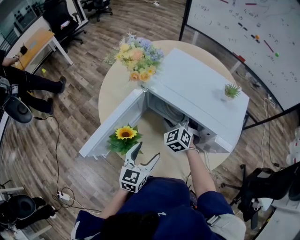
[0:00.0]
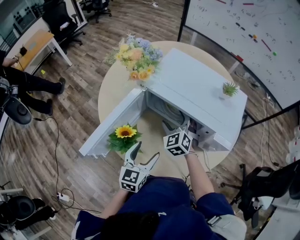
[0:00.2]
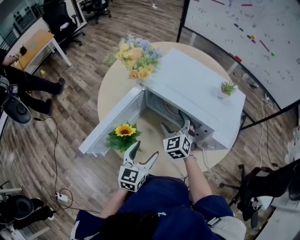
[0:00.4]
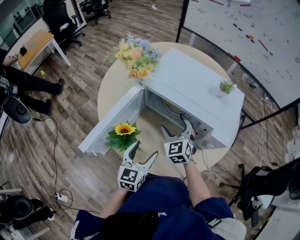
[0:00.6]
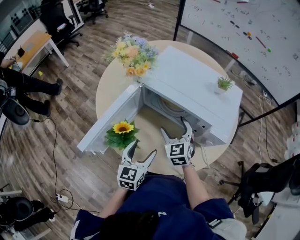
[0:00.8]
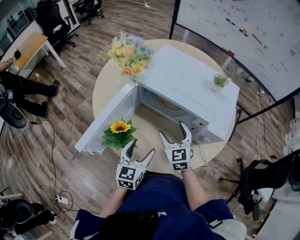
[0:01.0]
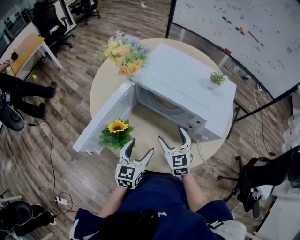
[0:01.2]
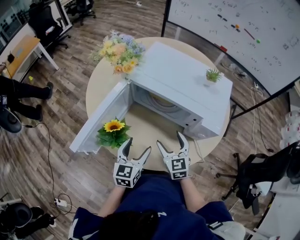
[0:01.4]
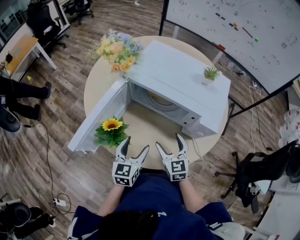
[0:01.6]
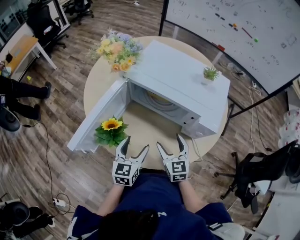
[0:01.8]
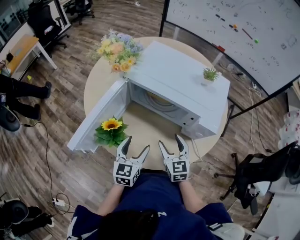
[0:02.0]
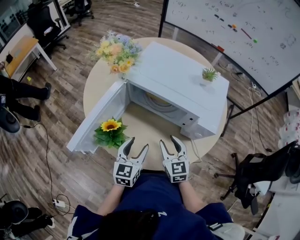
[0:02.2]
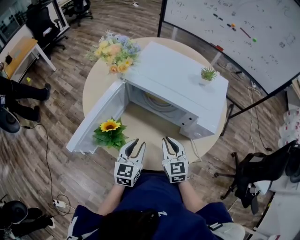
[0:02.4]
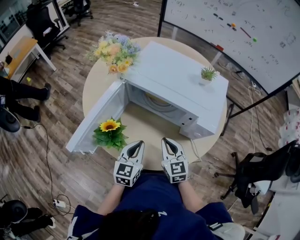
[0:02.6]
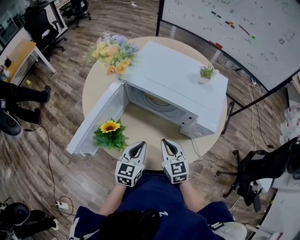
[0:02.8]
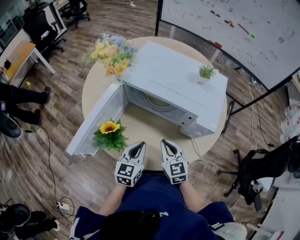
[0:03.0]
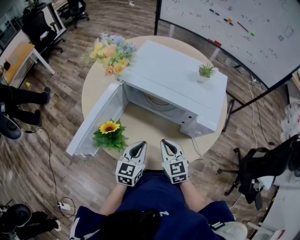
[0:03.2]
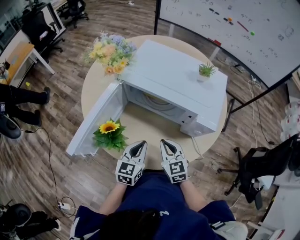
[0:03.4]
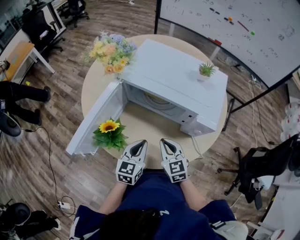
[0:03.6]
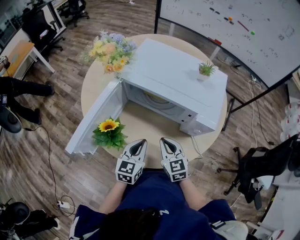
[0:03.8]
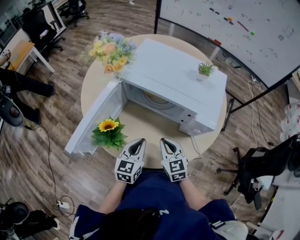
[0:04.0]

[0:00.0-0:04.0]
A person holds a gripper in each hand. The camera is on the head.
0:00.0 to 0:01.4: The right gripper shifts approximately 15 cm backward, and turns by about 30 degrees.
0:01.4 to 0:02.6: The left gripper closes its fingers, while the right gripper closes.
0:02.6 to 0:04.0: The grippers stay close to where they were, moving slightly.

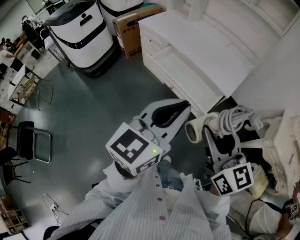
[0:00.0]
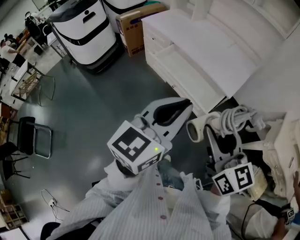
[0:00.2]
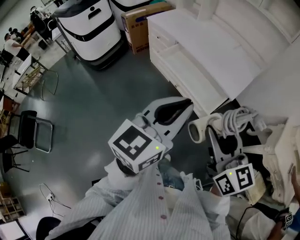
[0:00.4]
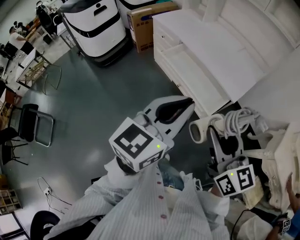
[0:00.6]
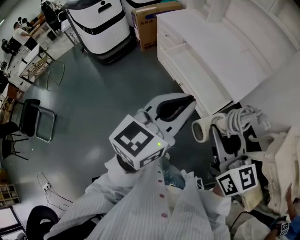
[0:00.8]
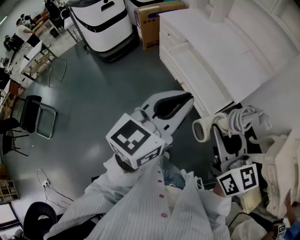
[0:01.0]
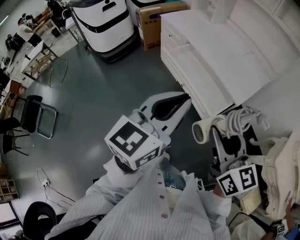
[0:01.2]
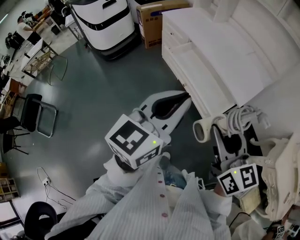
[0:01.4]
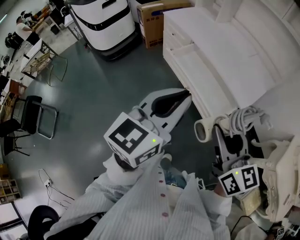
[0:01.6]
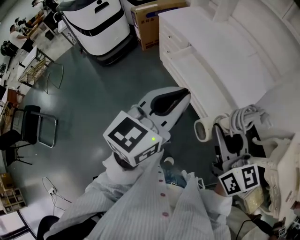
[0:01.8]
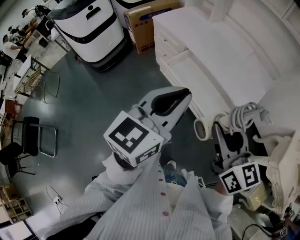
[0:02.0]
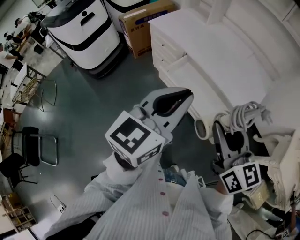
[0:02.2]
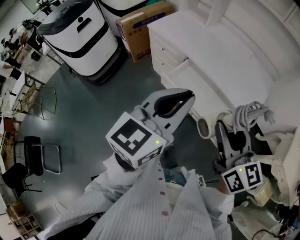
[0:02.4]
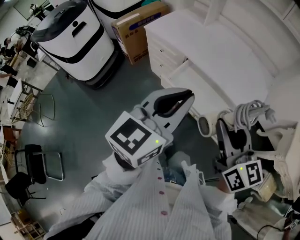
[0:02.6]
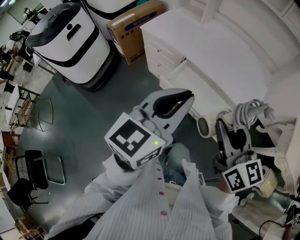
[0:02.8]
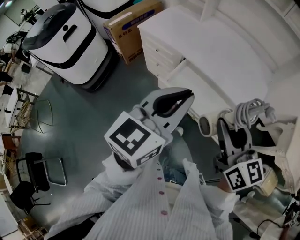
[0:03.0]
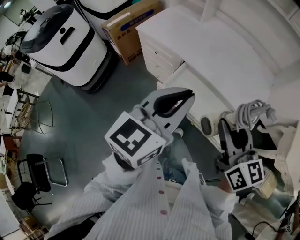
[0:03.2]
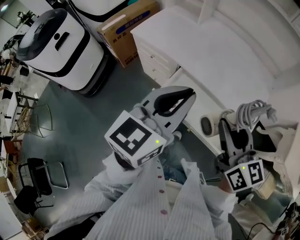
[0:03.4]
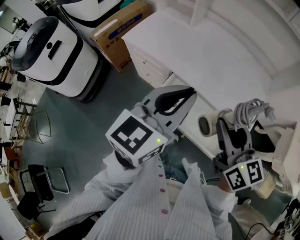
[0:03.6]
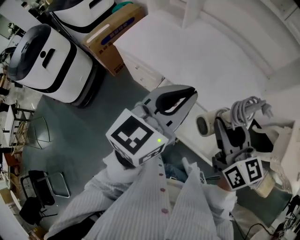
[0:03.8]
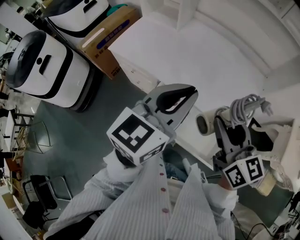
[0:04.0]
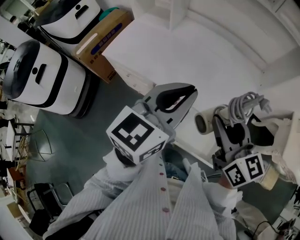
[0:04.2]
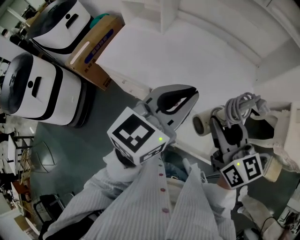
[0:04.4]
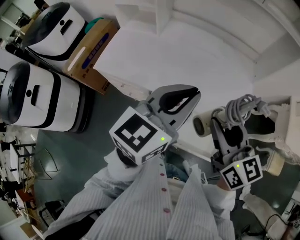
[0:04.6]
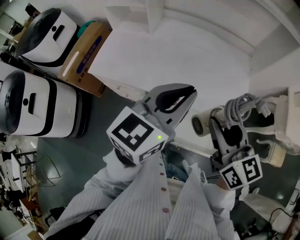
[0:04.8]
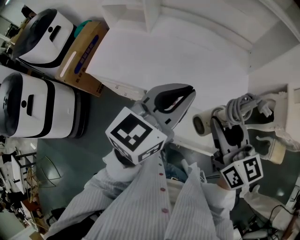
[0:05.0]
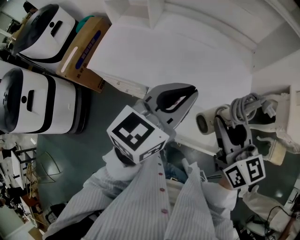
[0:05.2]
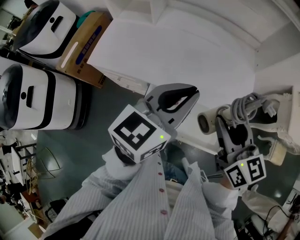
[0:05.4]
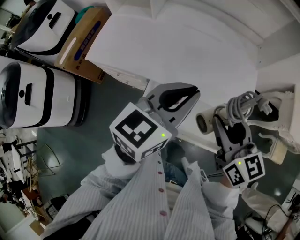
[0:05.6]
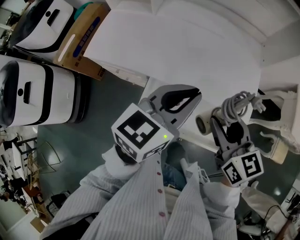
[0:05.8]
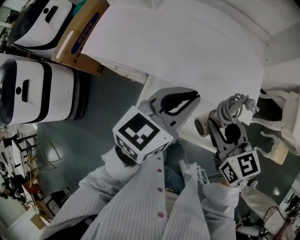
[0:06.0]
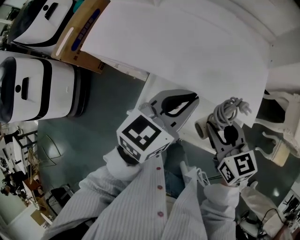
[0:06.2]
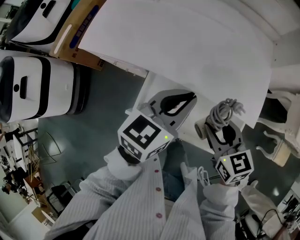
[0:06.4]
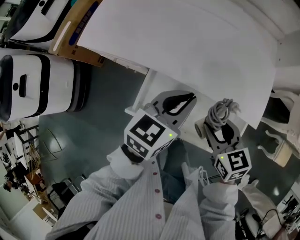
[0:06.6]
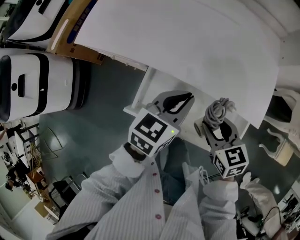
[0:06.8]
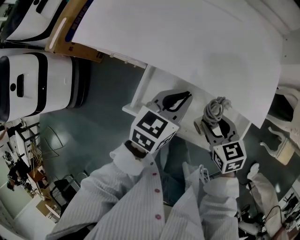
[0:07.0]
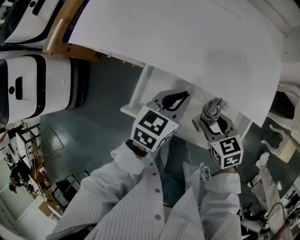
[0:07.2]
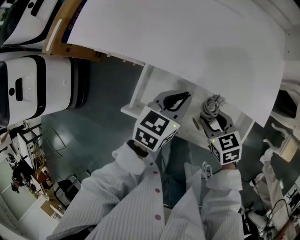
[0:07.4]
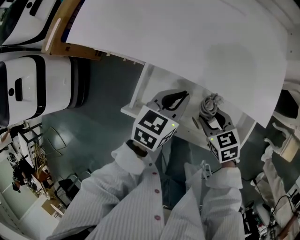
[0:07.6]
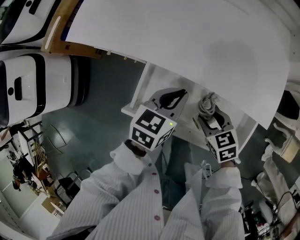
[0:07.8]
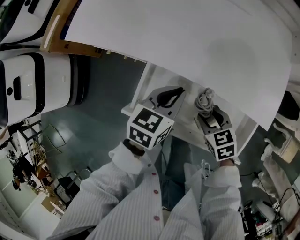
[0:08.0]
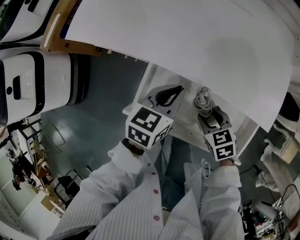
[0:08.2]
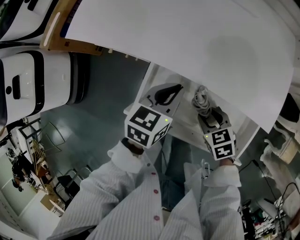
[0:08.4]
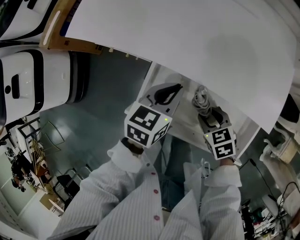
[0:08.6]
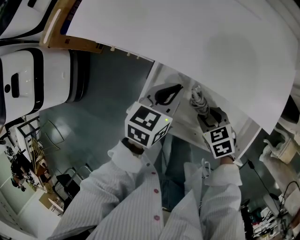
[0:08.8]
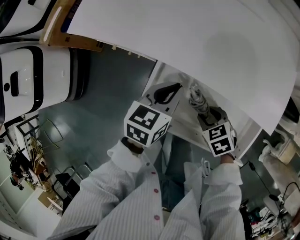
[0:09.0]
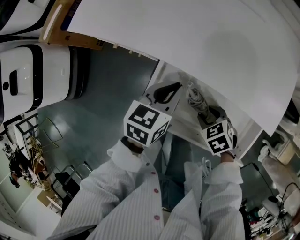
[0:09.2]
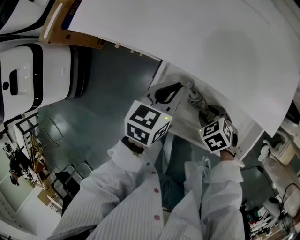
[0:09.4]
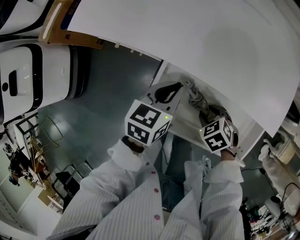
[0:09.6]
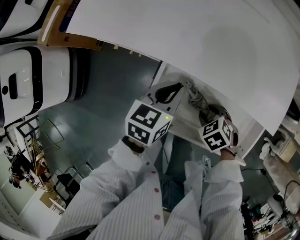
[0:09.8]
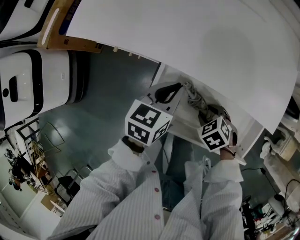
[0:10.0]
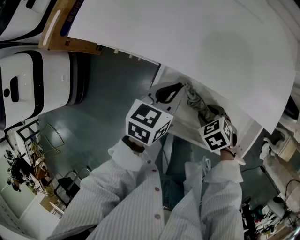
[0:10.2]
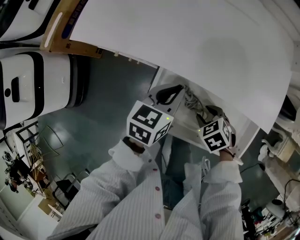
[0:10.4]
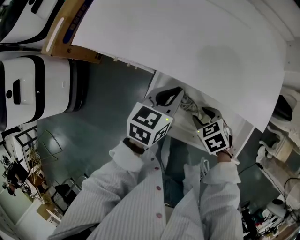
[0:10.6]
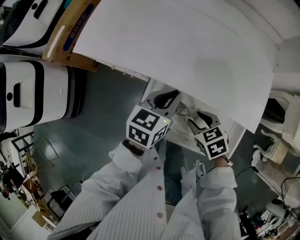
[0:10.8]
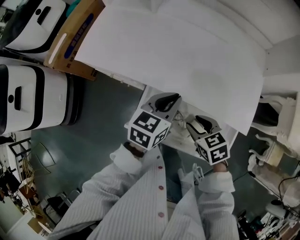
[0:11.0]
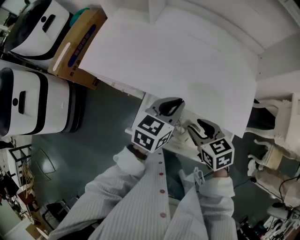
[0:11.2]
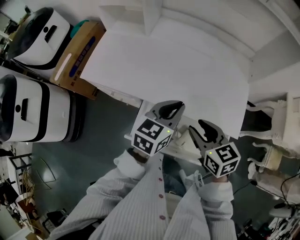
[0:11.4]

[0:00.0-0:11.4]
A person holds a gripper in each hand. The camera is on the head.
0:00.0 to 0:01.4: The right gripper ends up some 5 cm from where it was.
0:01.4 to 0:02.8: The two grippers go approximately 25 cm forward and to the left.
0:02.8 to 0:04.2: The grippers both shift forward by approximately 25 cm.
0:04.2 to 0:05.6: The left gripper heads downward, covering some 5 cm.
0:05.6 to 0:07.2: Both grippers move downward, roughly 25 cm. The left gripper rotates roughly 20 degrees. Meanwhile the right gripper tilts its fingers about 30 degrees downward.
0:07.2 to 0:08.6: The left gripper shifts approximately 5 cm to the left, while the right gripper moves downward, roughly 10 cm.
0:08.6 to 0:10.0: The right gripper changes its angle by about 20 degrees.
0:10.0 to 0:11.4: Both grippers travel together upward, roughly 25 cm. The right gripper tilts its fingers roughly 40 degrees upward.

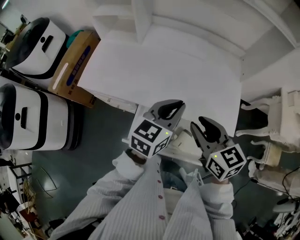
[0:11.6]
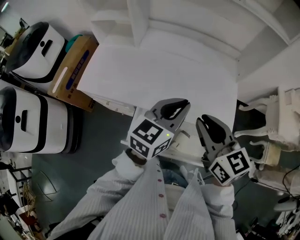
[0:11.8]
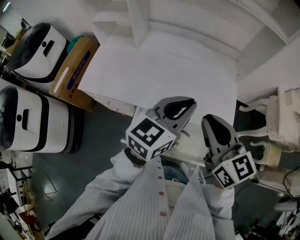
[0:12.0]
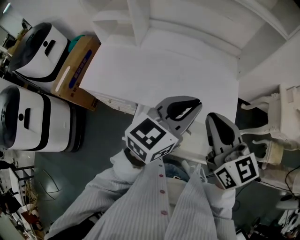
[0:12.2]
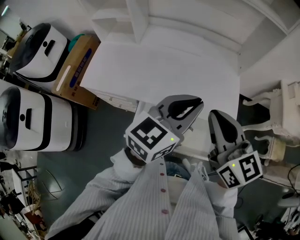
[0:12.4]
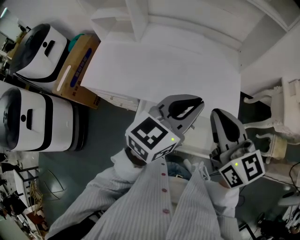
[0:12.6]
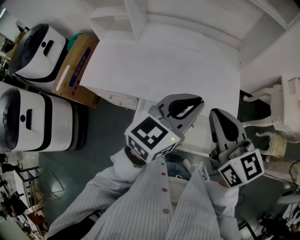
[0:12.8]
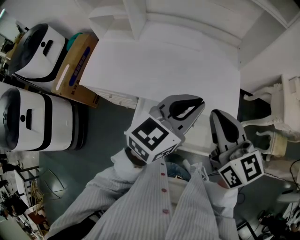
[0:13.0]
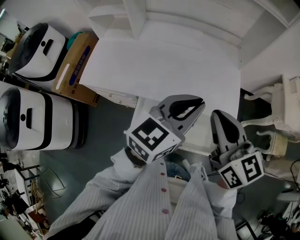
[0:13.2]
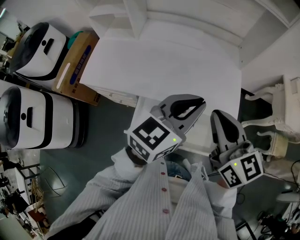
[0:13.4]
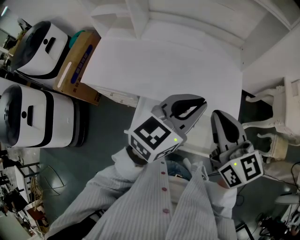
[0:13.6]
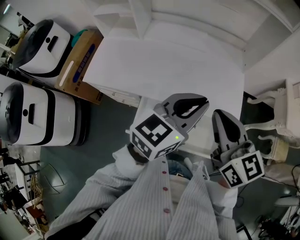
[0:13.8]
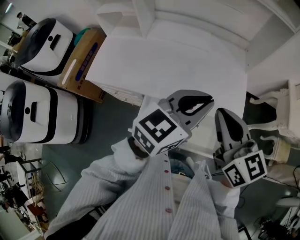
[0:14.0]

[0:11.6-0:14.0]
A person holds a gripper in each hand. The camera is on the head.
0:11.6 to 0:12.8: The left gripper is displaced upward and to the right by approximately 10 cm. The right gripper goes approximately 10 cm upward, and closes its fingers.
0:12.8 to 0:14.0: The grippers make only small movements.

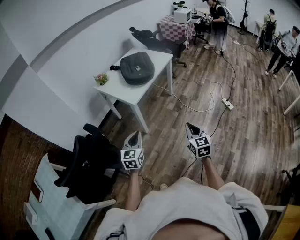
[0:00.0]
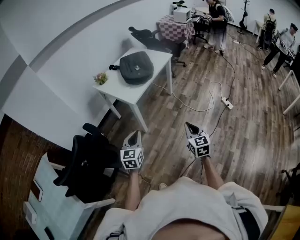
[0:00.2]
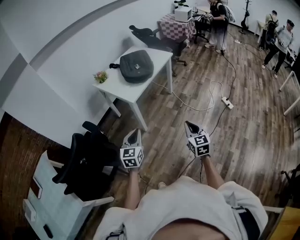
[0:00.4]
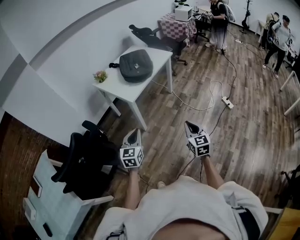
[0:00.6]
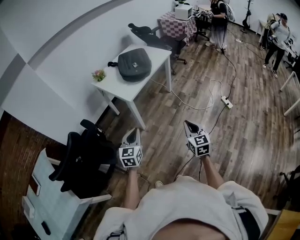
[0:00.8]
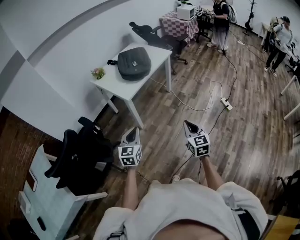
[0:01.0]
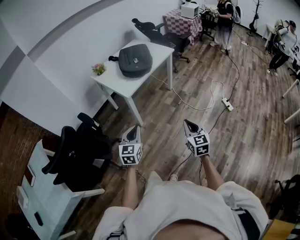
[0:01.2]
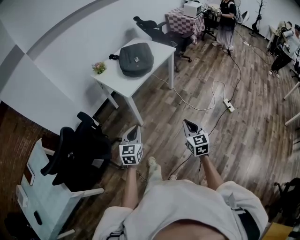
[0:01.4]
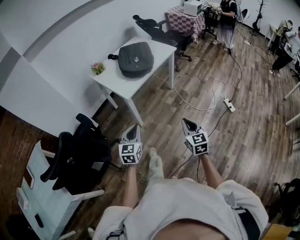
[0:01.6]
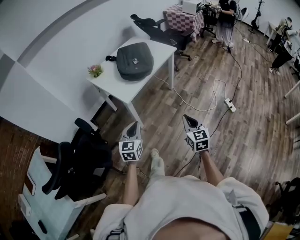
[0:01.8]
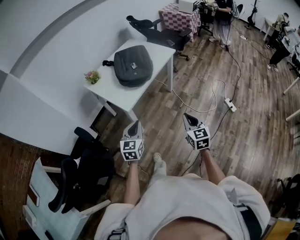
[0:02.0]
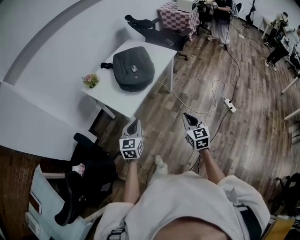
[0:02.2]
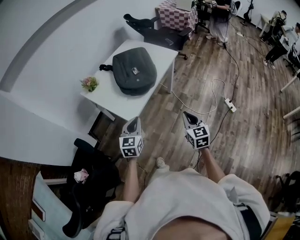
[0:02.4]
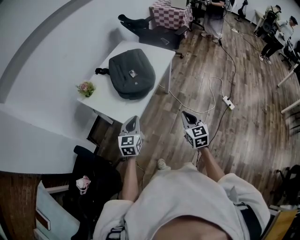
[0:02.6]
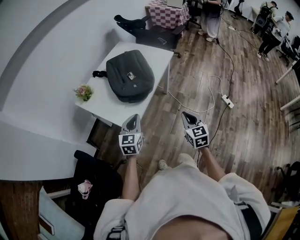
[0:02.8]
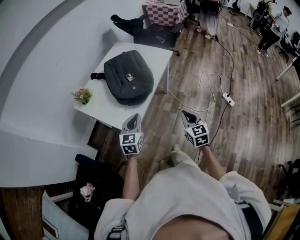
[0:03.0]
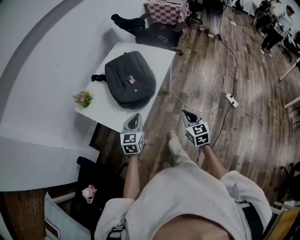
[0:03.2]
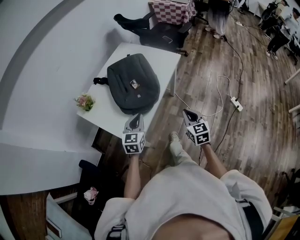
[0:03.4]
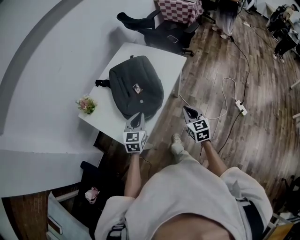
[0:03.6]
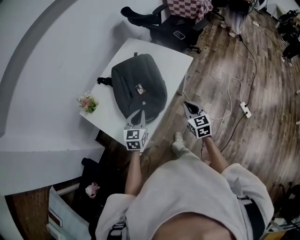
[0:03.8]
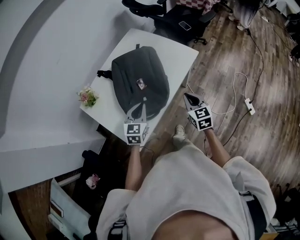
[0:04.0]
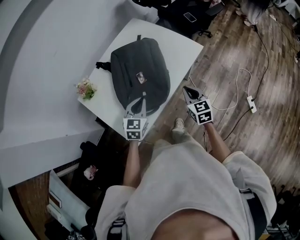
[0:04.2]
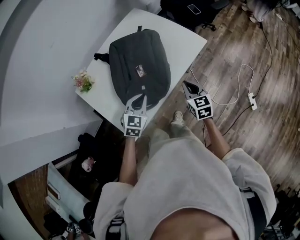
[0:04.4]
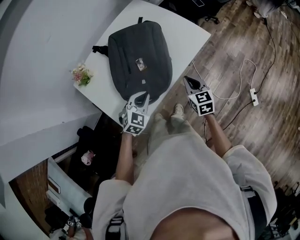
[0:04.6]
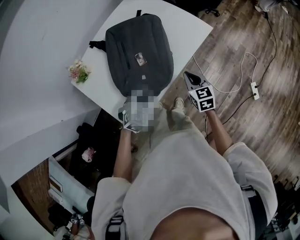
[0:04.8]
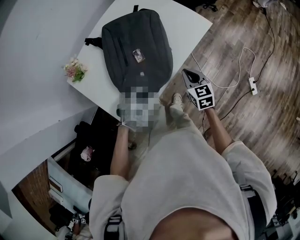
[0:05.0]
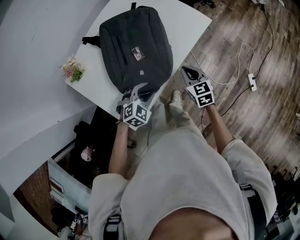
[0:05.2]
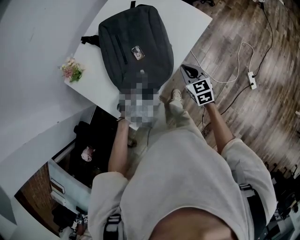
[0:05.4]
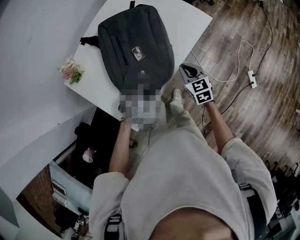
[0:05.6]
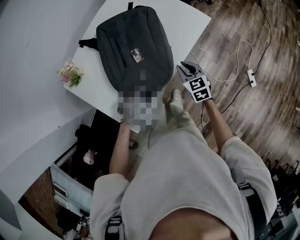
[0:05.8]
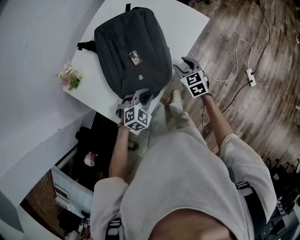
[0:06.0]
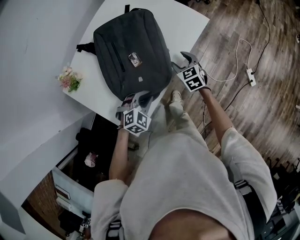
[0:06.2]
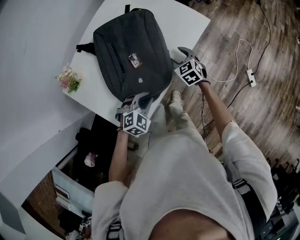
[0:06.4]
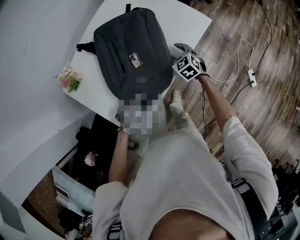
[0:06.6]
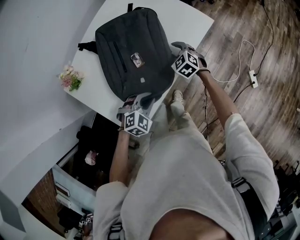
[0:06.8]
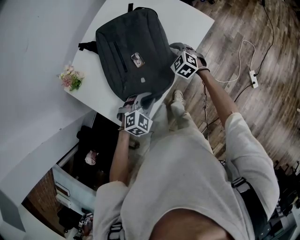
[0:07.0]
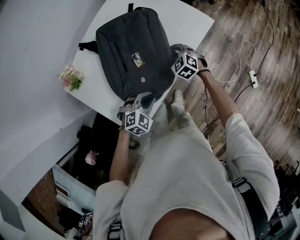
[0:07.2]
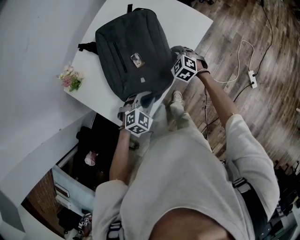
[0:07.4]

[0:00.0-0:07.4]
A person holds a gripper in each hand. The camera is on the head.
0:00.0 to 0:01.4: The two grippers go about 5 cm to the right.
0:01.4 to 0:03.0: The grippers both shift forward by approximately 40 cm.
0:03.0 to 0:04.4: Both grippers travel together forward, about 30 cm. The left gripper changes its angle by about 20 degrees.
0:04.4 to 0:06.0: The left gripper goes some 10 cm downward, rotates roughly 40 degrees, and opens, then closes again, while the right gripper shifts approximately 10 cm downward and forward, and opens its fingers.
0:06.0 to 0:07.4: The right gripper travels forward by about 5 cm, turns by some 30 degrees, and closes.
